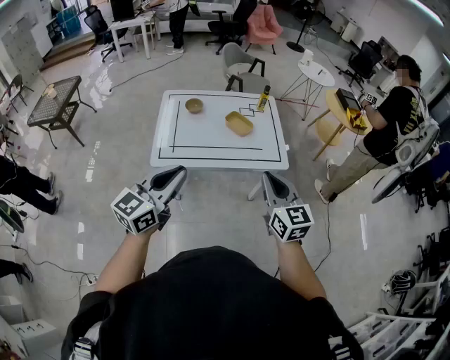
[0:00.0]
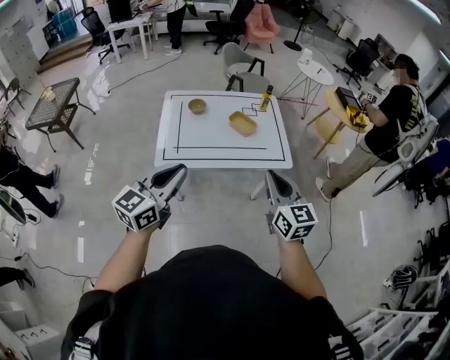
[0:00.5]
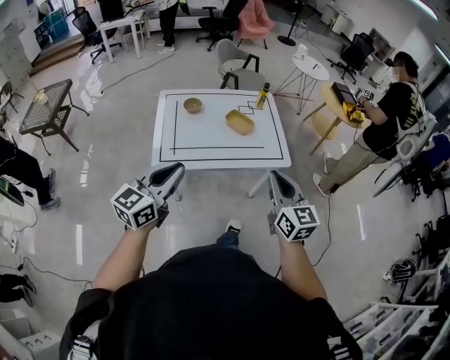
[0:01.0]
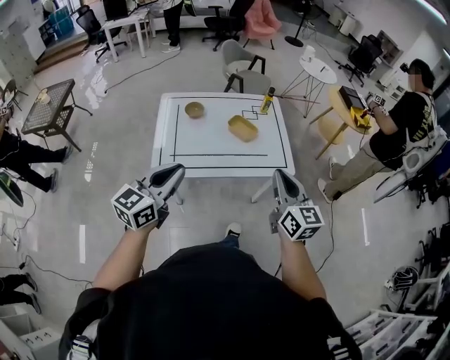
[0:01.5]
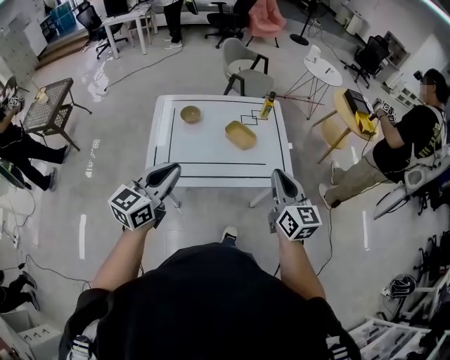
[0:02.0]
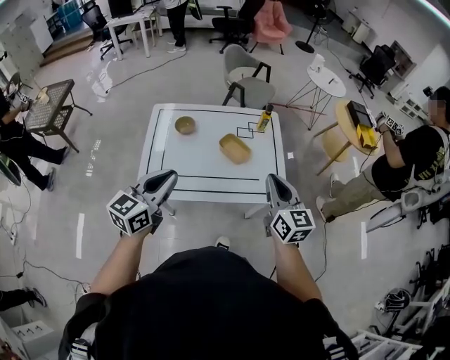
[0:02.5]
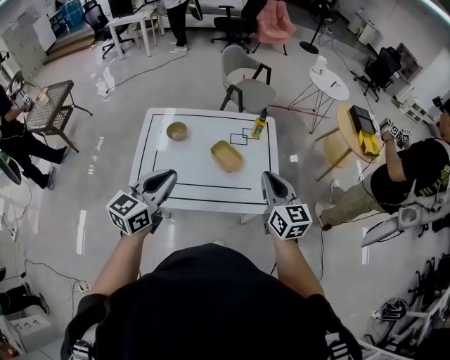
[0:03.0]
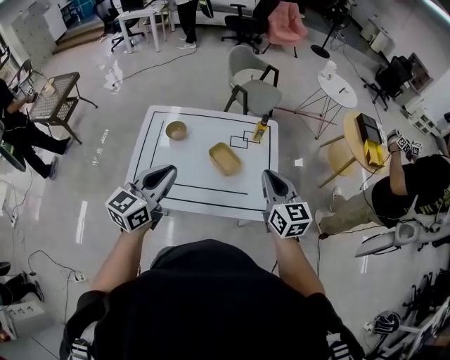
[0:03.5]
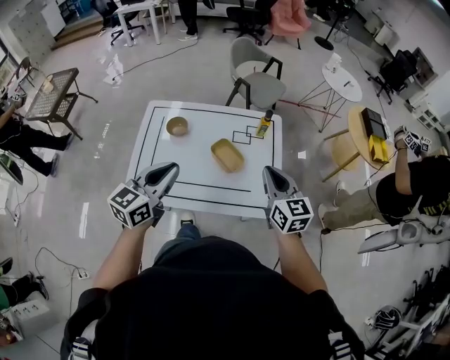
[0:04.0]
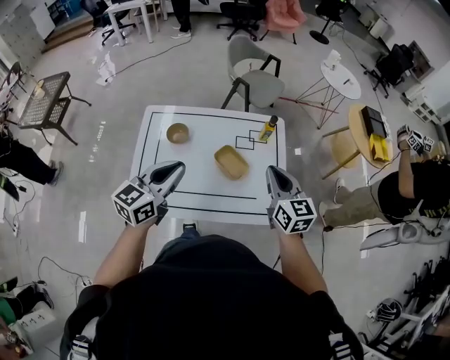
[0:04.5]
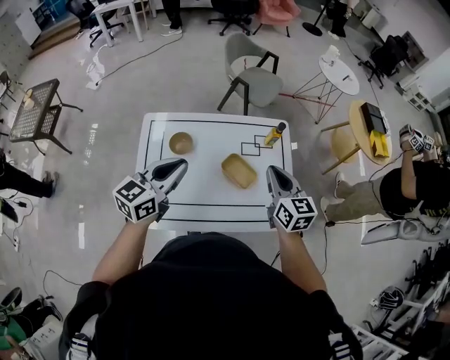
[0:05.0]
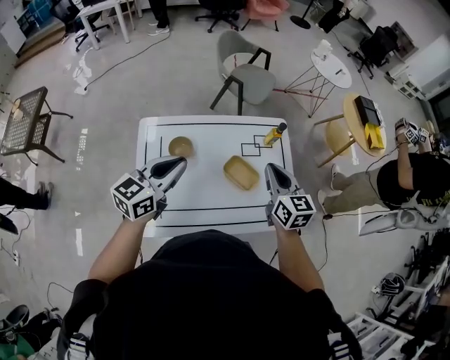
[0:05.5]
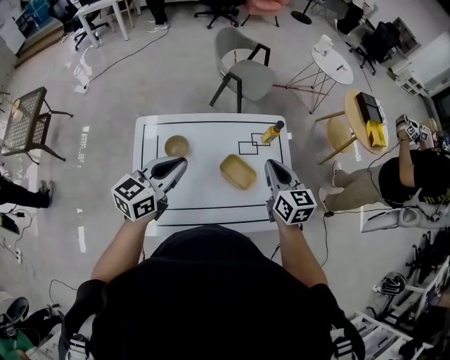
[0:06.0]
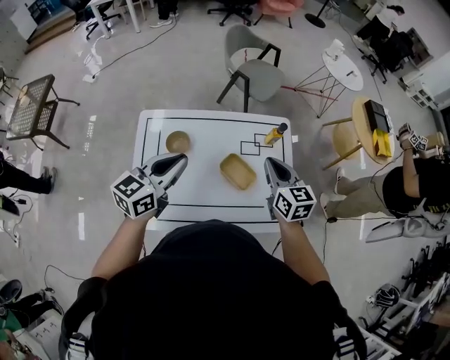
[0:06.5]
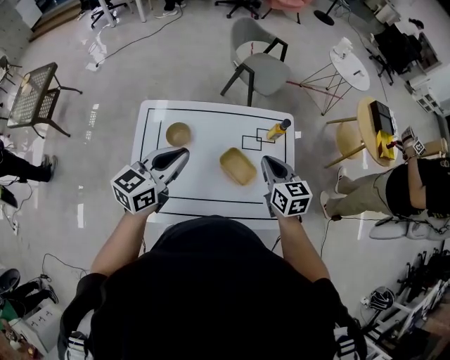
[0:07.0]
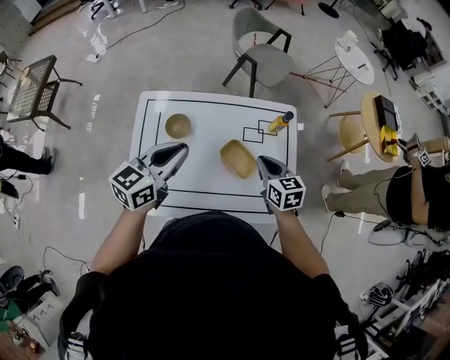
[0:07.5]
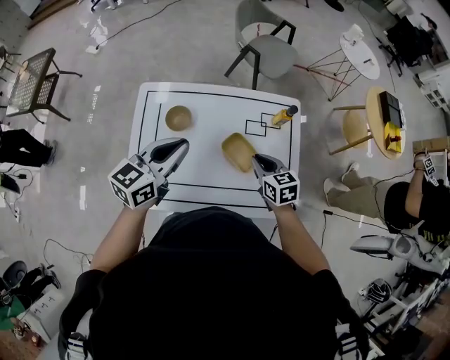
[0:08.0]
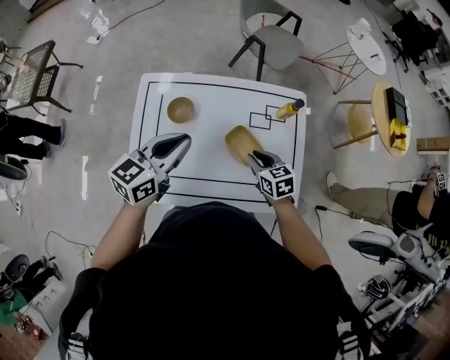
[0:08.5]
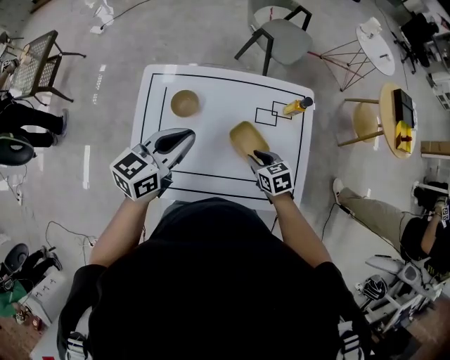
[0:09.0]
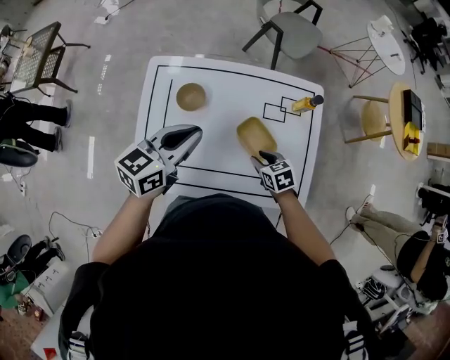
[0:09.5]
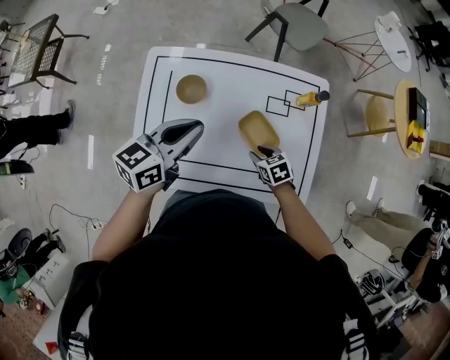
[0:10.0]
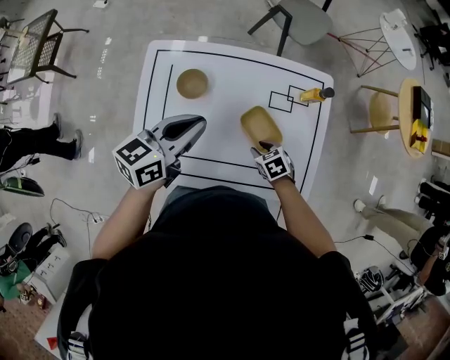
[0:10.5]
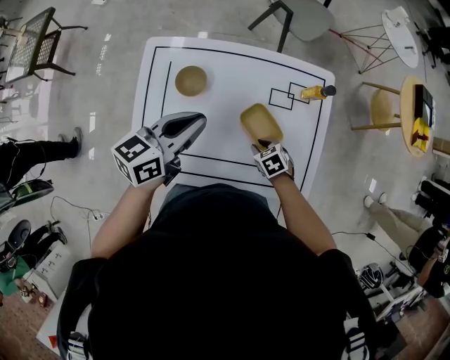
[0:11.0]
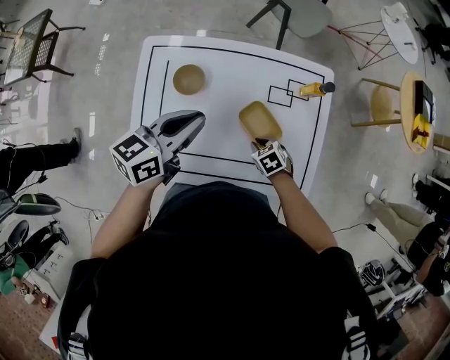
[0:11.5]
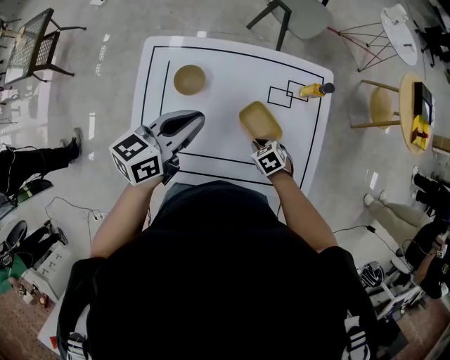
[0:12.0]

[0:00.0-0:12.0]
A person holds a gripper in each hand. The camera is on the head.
0:00.0 to 0:02.0: Both grippers travel together forward, some 15 cm.
0:02.0 to 0:04.0: The right gripper heads forward, covering about 20 cm. The left gripper is displaced forward and to the right by some 20 cm.
0:04.0 to 0:06.0: The two grippers go approximately 15 cm forward and to the left.
0:06.0 to 0:08.0: The right gripper moves downward, roughly 15 cm, and swivels about 30 degrees.
0:08.0 to 0:10.0: The right gripper goes roughly 15 cm downward, swivels about 30 degrees, and opens up. Meanwhile the left gripper goes roughly 5 cm downward.
0:10.0 to 0:12.0: The right gripper closes.

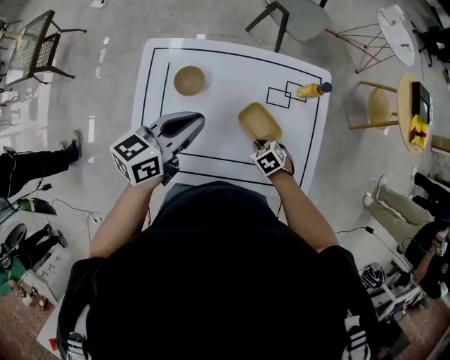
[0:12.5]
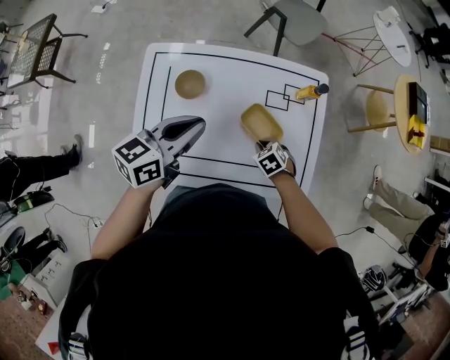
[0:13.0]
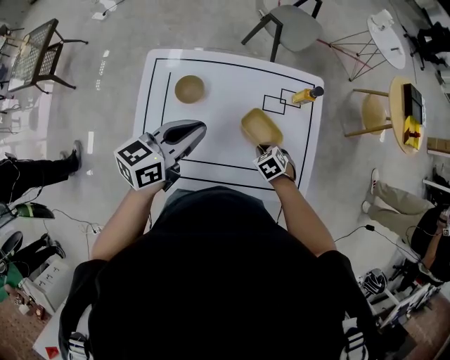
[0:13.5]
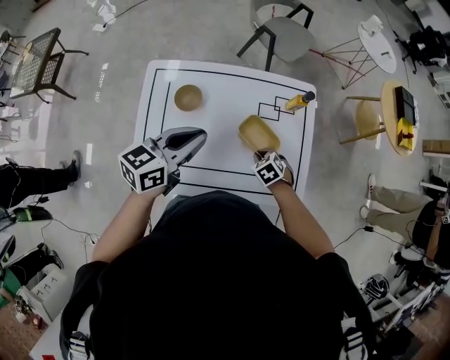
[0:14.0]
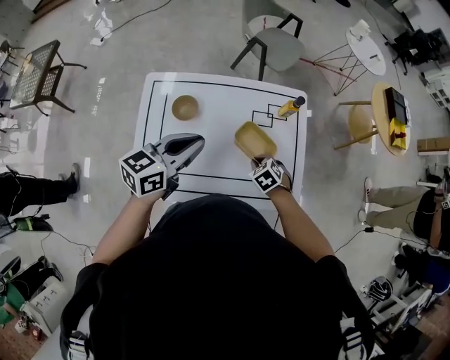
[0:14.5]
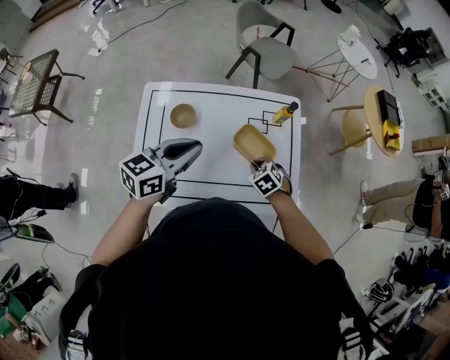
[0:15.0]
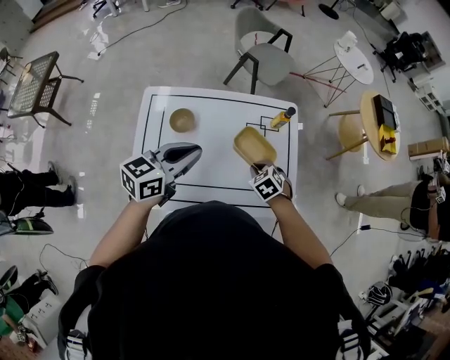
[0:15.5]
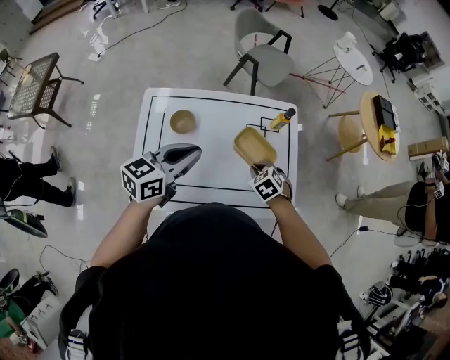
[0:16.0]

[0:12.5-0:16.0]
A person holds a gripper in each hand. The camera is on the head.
0:12.5 to 0:14.5: The right gripper moves upward, some 10 cm. The left gripper changes place by roughly 5 cm.
0:14.5 to 0:16.0: The right gripper shifts some 5 cm upward.

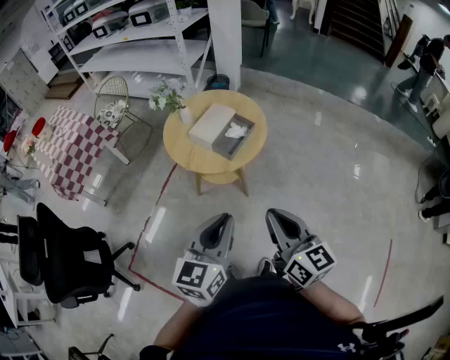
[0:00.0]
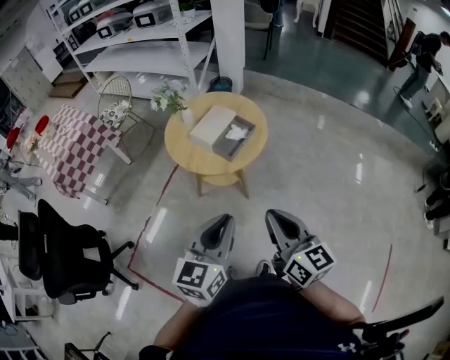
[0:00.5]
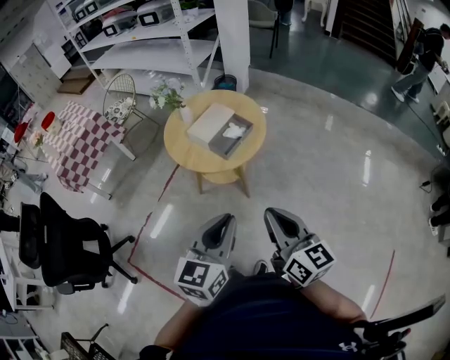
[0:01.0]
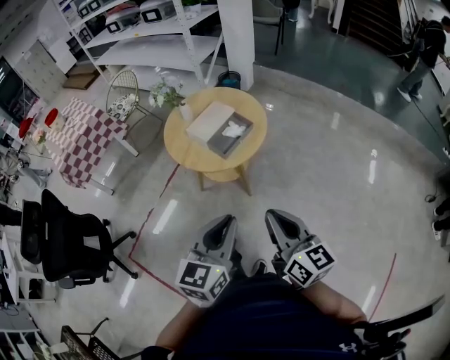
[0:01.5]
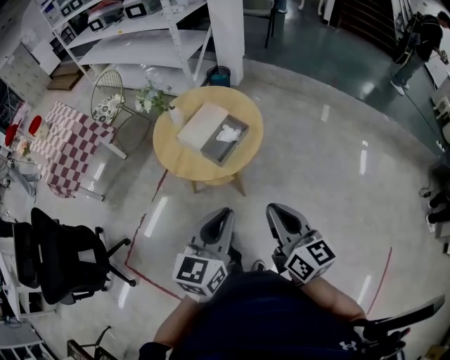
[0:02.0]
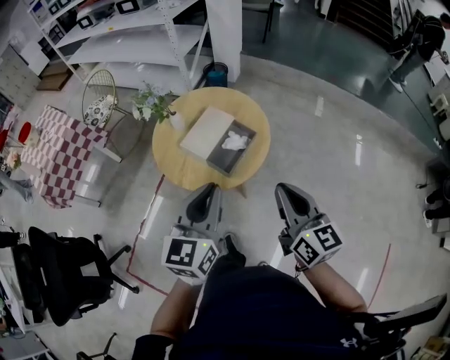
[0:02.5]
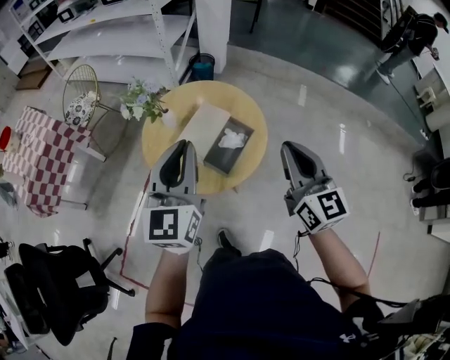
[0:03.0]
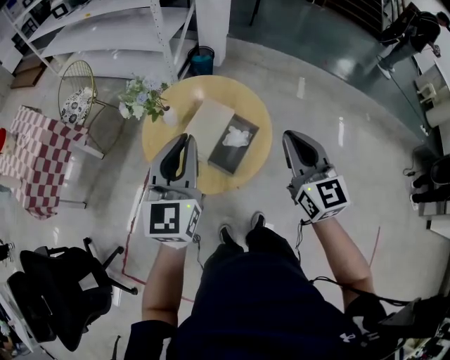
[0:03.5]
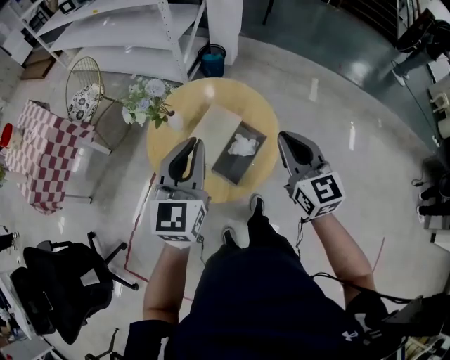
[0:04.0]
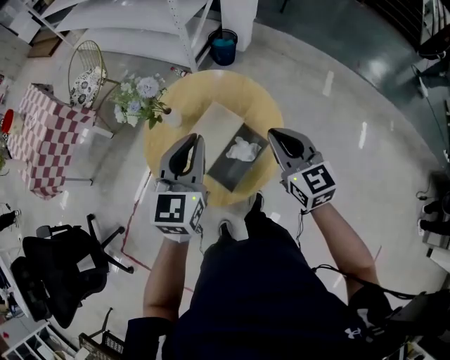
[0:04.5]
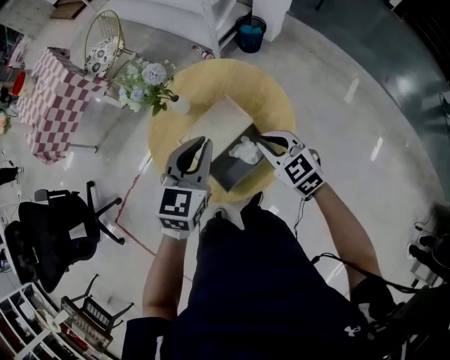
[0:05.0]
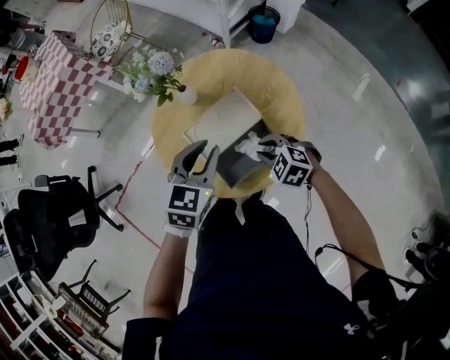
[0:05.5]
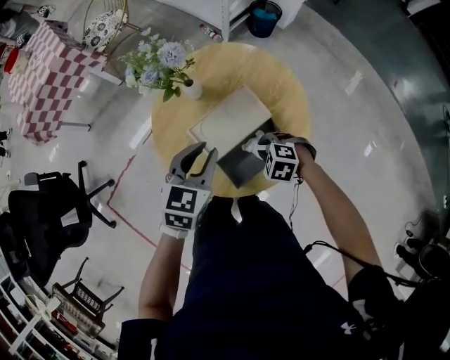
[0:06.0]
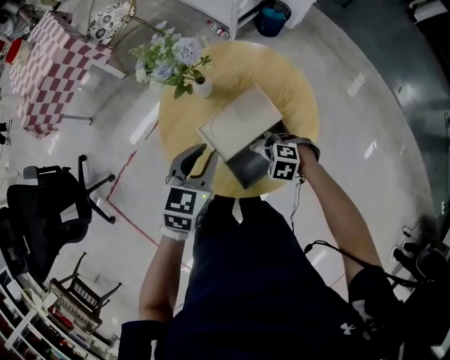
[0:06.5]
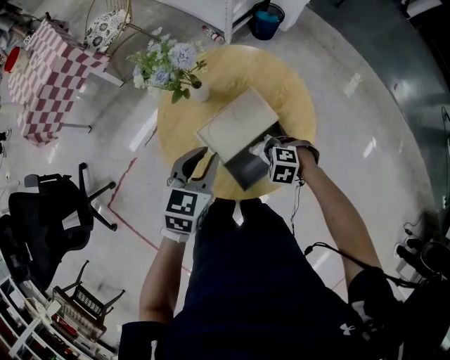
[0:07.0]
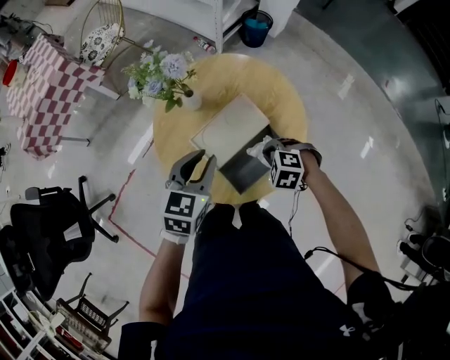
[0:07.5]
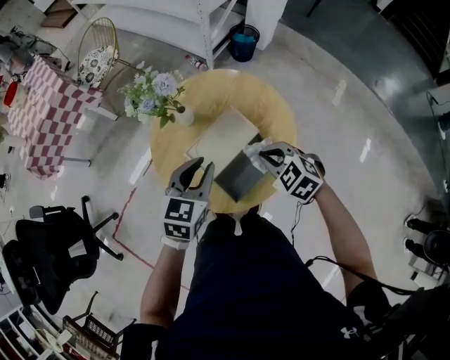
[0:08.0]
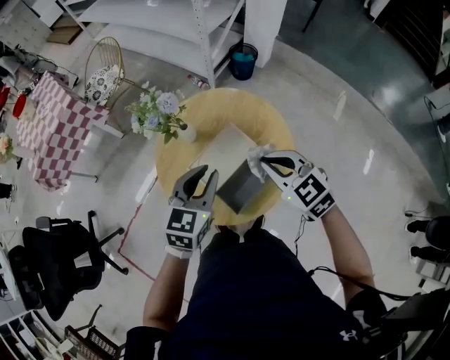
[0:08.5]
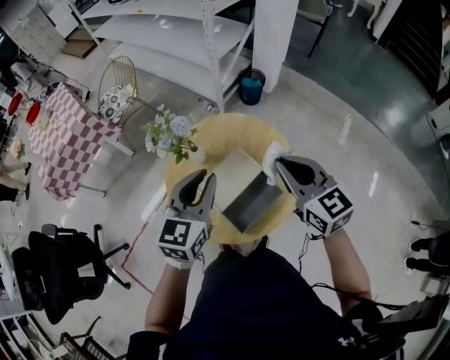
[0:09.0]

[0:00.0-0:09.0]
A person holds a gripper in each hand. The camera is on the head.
0:00.0 to 0:02.0: The two grippers go about 10 cm forward and to the right.
0:02.0 to 0:04.5: The pair of grippers is taken forward, some 40 cm. The right gripper changes its angle by some 30 degrees.
0:04.5 to 0:07.0: The right gripper shifts roughly 30 cm downward, and tilts its fingers about 60 degrees downward. The left gripper moves downward, about 15 cm, and changes its angle by some 20 degrees.
0:07.0 to 0:09.0: The right gripper moves upward, roughly 35 cm, and points its fingers some 60 degrees further upward, while the left gripper moves upward, approximately 15 cm, and changes its angle by roughly 20 degrees.

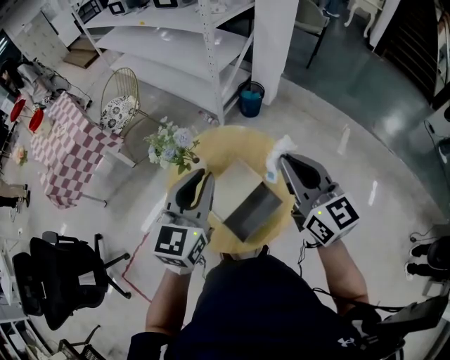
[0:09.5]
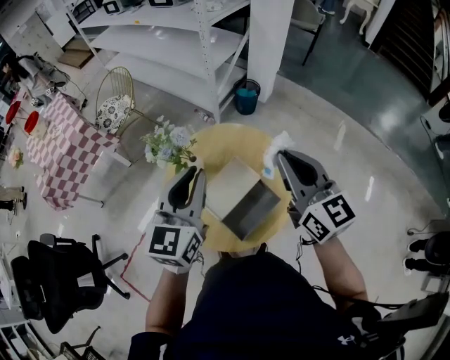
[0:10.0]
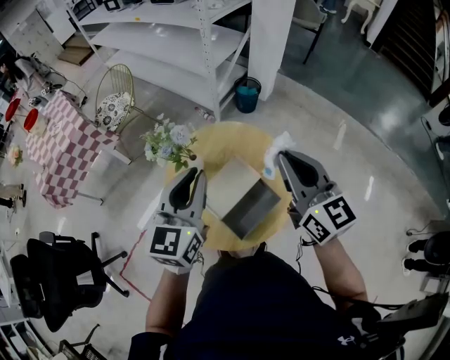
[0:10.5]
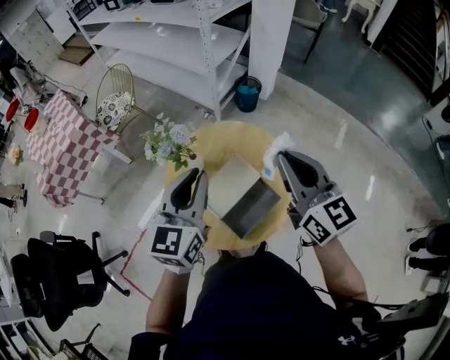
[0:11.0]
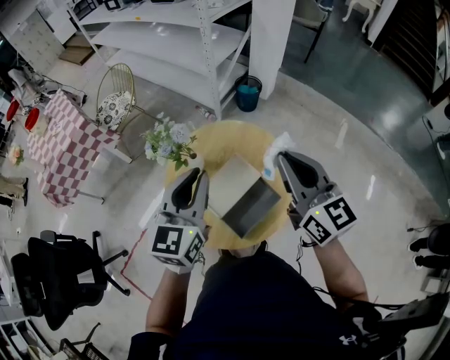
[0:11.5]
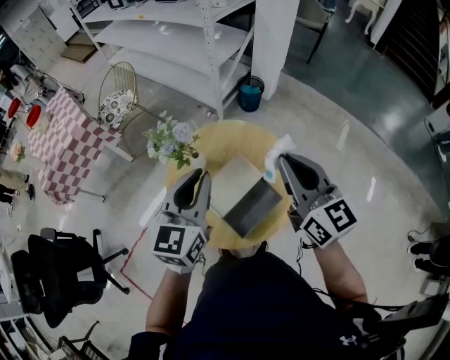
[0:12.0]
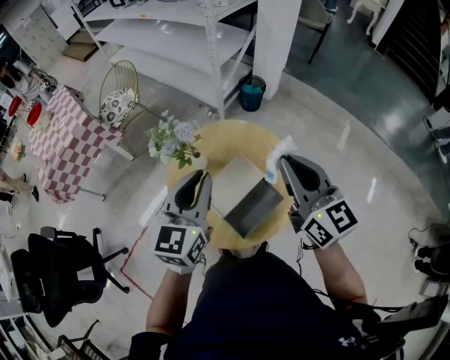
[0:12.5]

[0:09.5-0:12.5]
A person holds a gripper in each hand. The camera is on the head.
0:09.5 to 0:11.0: There are only small adjustments of the grippers.
0:11.0 to 0:12.5: Both grippers stay about where they are.
